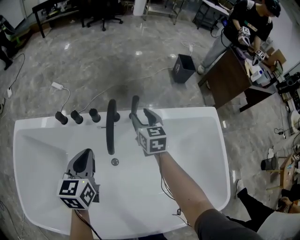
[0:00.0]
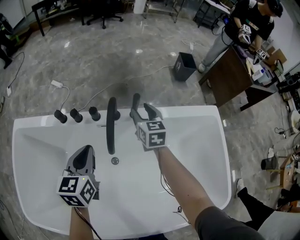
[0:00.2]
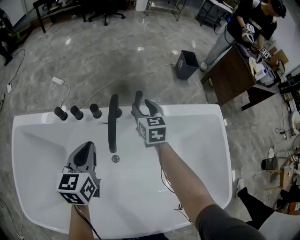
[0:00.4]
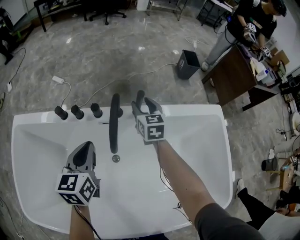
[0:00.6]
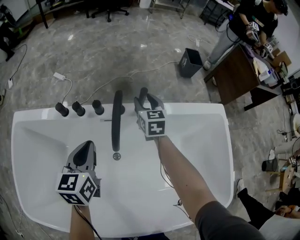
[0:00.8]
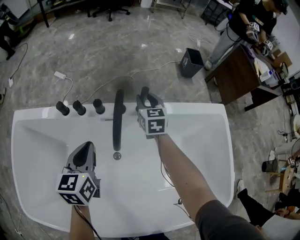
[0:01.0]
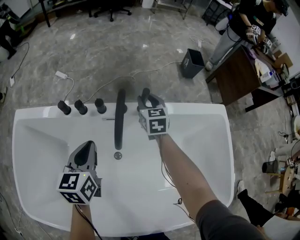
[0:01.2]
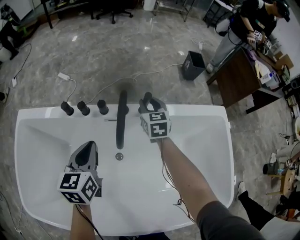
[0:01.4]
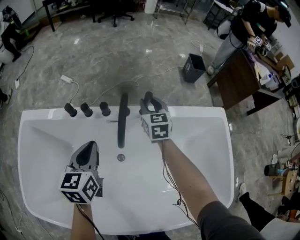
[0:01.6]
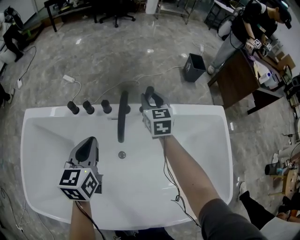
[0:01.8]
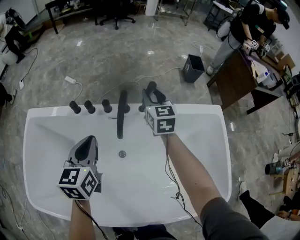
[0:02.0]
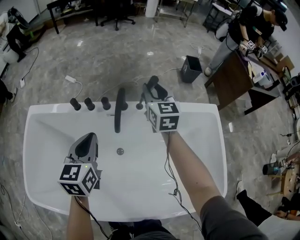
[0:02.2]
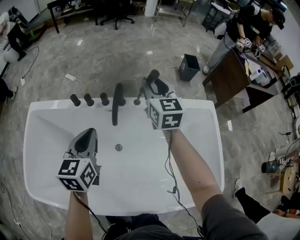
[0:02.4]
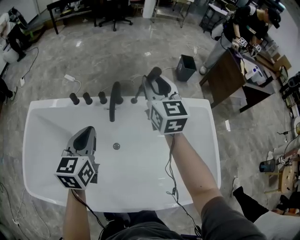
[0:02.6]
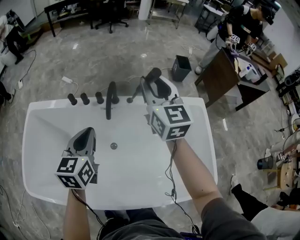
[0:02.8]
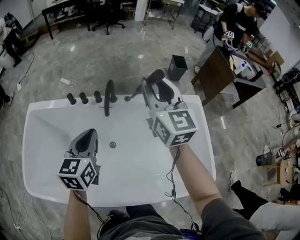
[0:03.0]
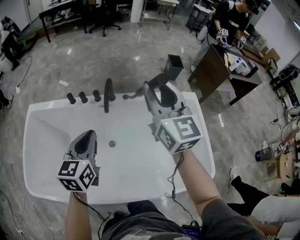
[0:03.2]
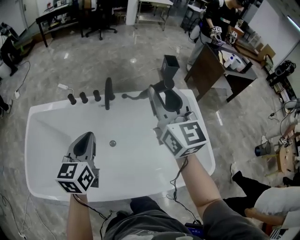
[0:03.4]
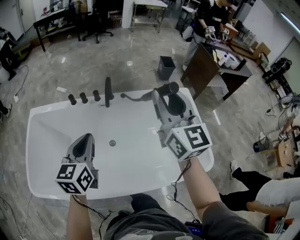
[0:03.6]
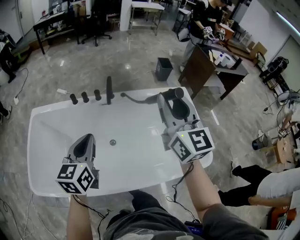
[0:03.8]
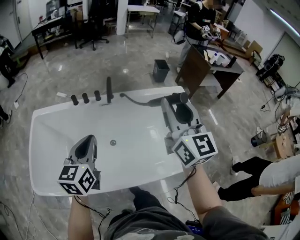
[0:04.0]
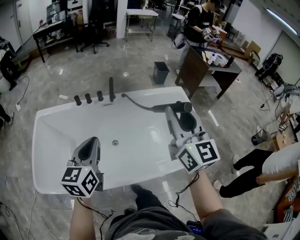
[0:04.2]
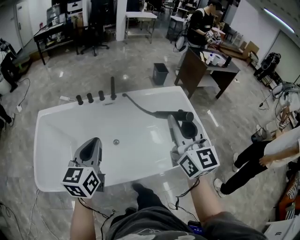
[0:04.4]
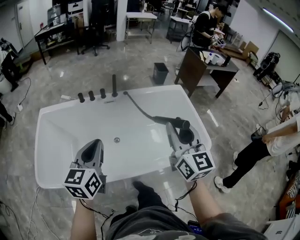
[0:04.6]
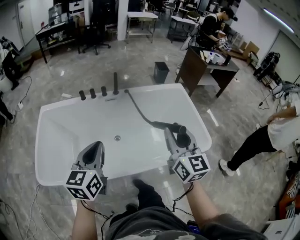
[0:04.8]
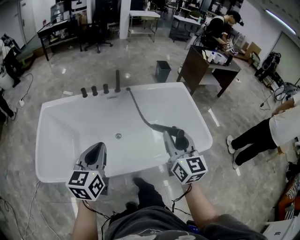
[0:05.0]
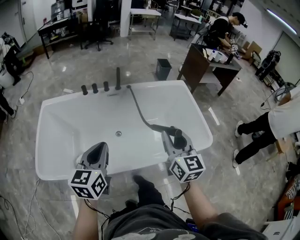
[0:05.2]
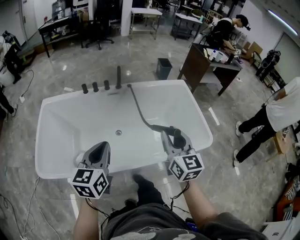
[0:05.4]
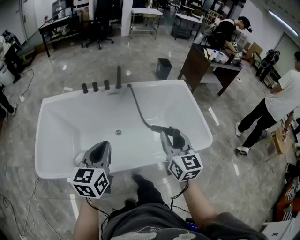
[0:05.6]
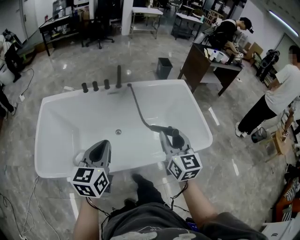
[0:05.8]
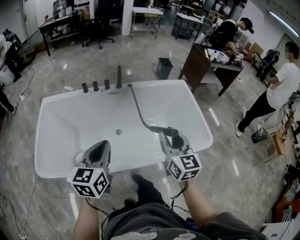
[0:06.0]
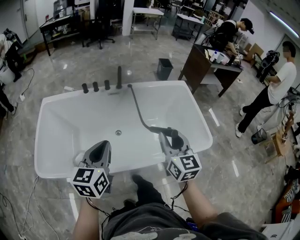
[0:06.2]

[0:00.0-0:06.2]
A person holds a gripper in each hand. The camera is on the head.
0:01.6 to 0:03.2: The left gripper moves backward and upward, about 25 cm, while the right gripper heads upward and backward, covering about 40 cm, and changes its angle by roughly 30 degrees.
0:03.2 to 0:04.6: The two grippers go about 30 cm backward.
0:04.6 to 0:06.2: The right gripper heads downward, covering roughly 10 cm.

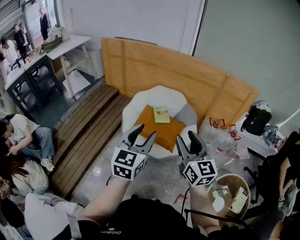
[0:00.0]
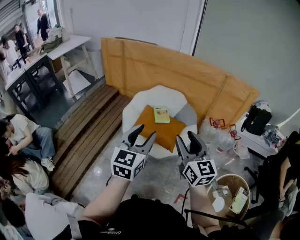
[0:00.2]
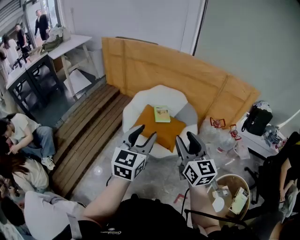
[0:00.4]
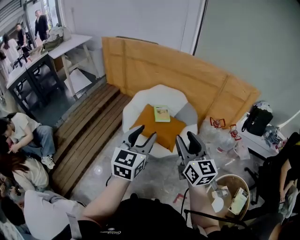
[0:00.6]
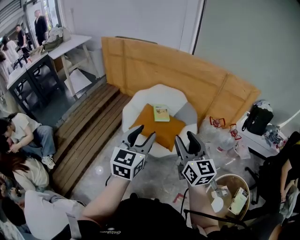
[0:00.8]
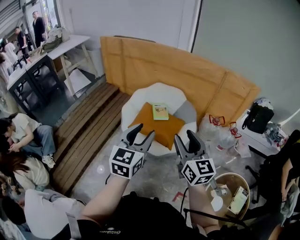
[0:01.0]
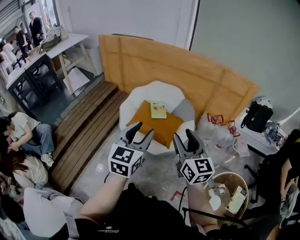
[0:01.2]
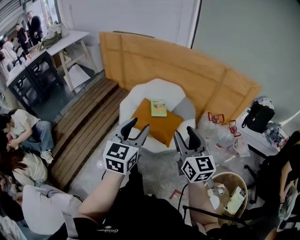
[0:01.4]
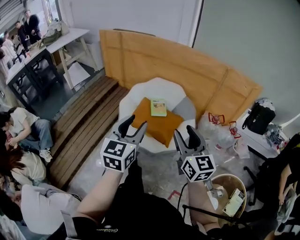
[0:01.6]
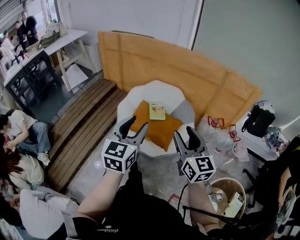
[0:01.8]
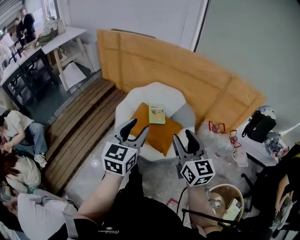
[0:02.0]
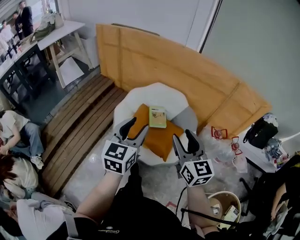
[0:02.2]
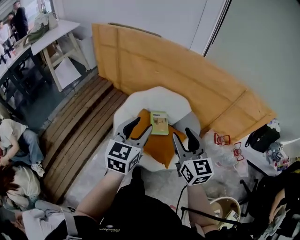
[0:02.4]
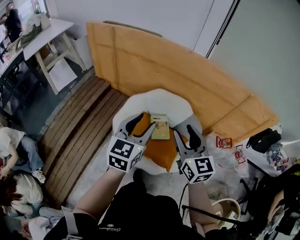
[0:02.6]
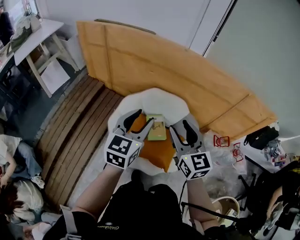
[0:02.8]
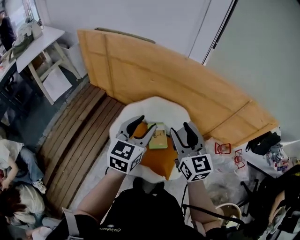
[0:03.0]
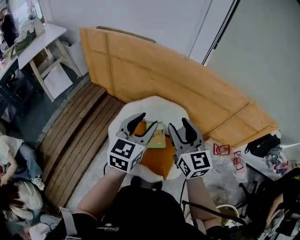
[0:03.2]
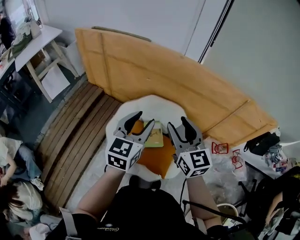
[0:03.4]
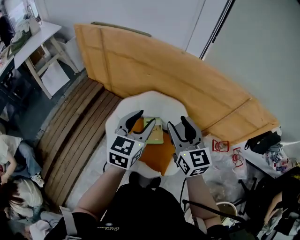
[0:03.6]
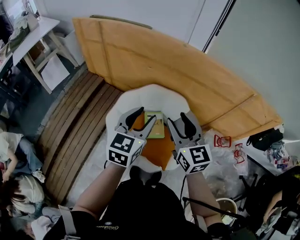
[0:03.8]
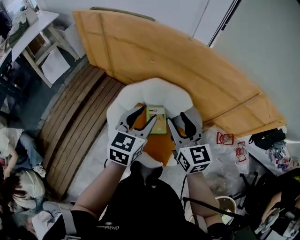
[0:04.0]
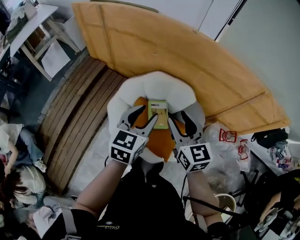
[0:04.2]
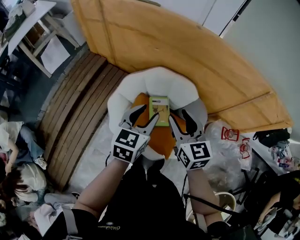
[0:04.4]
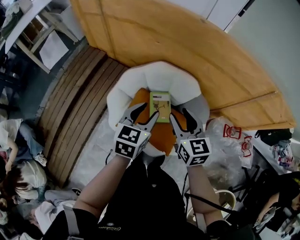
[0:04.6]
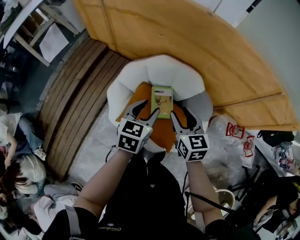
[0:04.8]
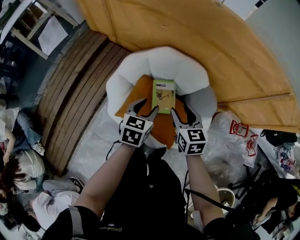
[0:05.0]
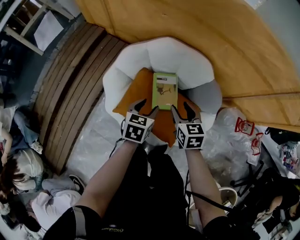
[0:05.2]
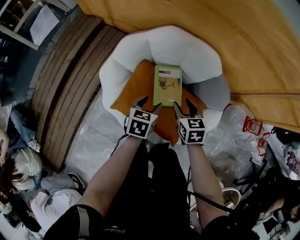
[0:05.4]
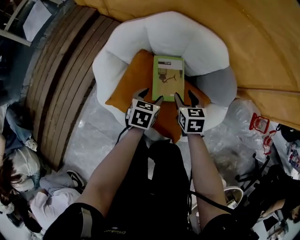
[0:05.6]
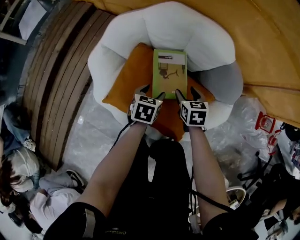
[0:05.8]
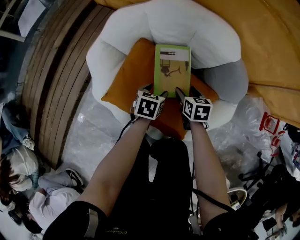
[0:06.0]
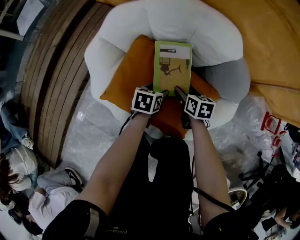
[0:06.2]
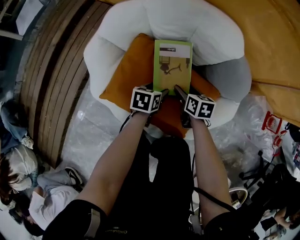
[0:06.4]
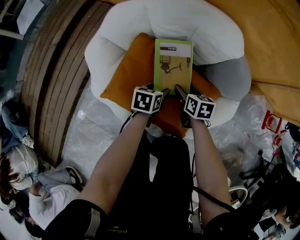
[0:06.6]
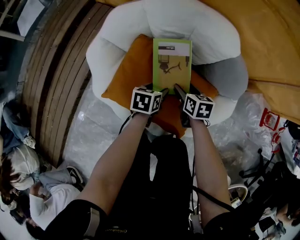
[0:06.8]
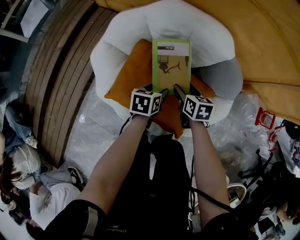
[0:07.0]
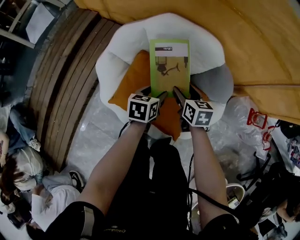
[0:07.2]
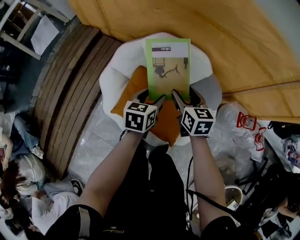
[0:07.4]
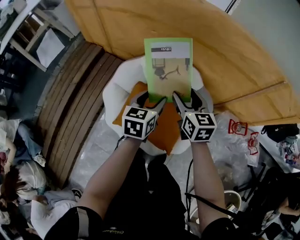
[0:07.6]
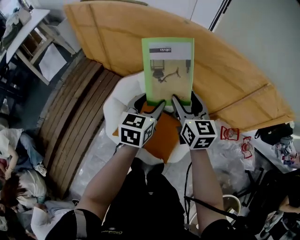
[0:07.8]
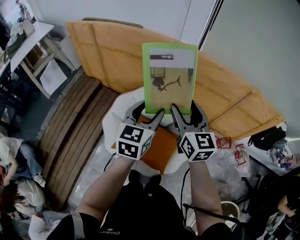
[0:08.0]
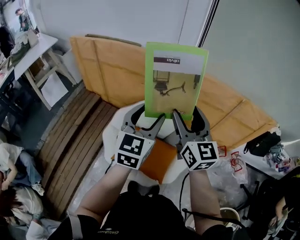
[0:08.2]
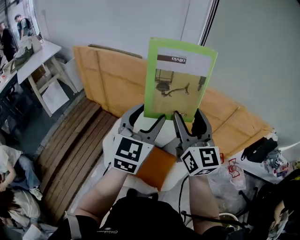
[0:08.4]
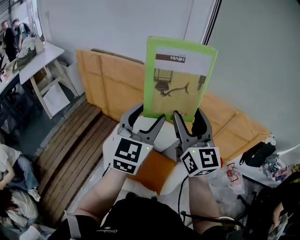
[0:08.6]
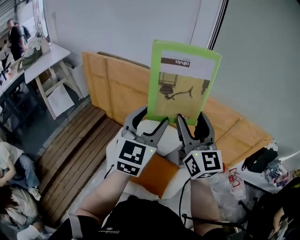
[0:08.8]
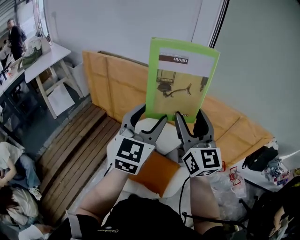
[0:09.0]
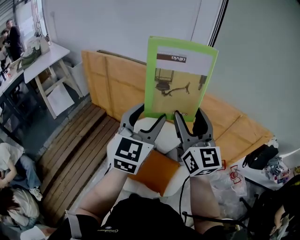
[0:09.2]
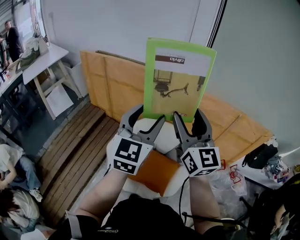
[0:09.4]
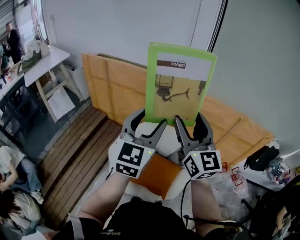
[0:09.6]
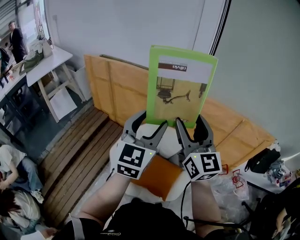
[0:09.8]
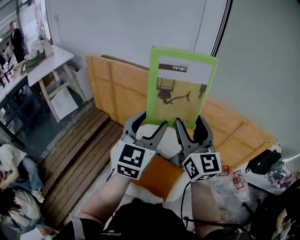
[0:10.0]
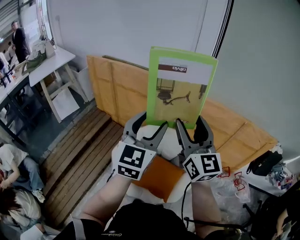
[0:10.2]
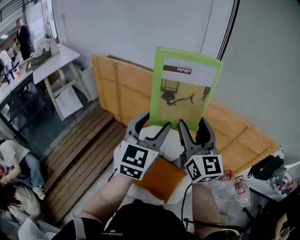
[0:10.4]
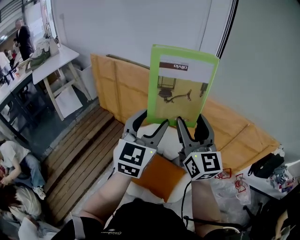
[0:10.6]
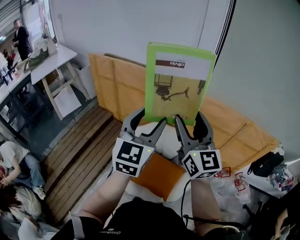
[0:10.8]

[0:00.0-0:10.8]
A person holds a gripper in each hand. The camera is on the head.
0:00.0 to 0:01.6: The left gripper moves roughly 5 cm; the right gripper heads to the right, covering some 5 cm.
0:01.6 to 0:03.0: The two grippers travel together, forward, about 40 cm.
0:03.0 to 0:04.6: The right gripper is displaced downward and forward by roughly 15 cm. The left gripper shifts roughly 15 cm downward.
0:04.6 to 0:06.2: Both grippers move downward, roughly 50 cm. The left gripper changes its angle by about 40 degrees; the right gripper turns by roughly 40 degrees.
0:06.2 to 0:07.8: Both grippers move upward, roughly 60 cm. The right gripper points its fingers about 40 degrees further upward; the left gripper angles its fingers upward, by roughly 30 degrees.
0:07.8 to 0:09.2: The two grippers go roughly 30 cm upward. The right gripper turns by some 30 degrees. The left gripper changes its angle by roughly 30 degrees.
0:09.2 to 0:10.8: The two grippers keep their place.

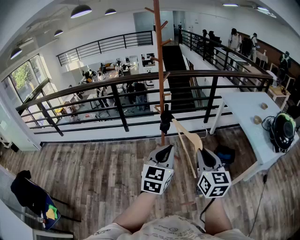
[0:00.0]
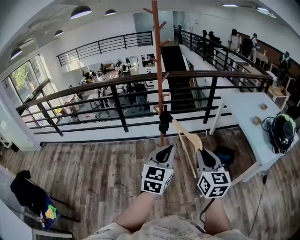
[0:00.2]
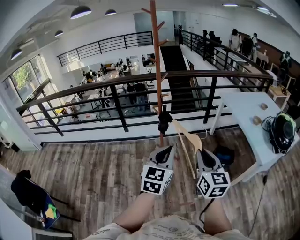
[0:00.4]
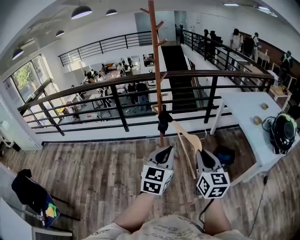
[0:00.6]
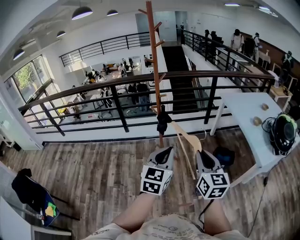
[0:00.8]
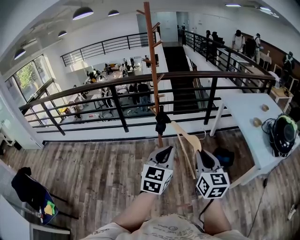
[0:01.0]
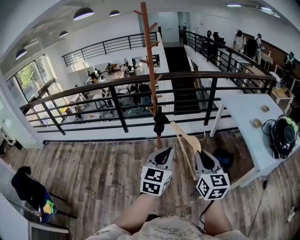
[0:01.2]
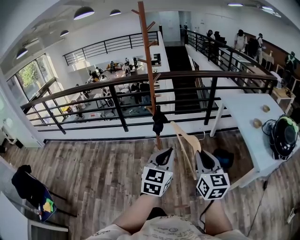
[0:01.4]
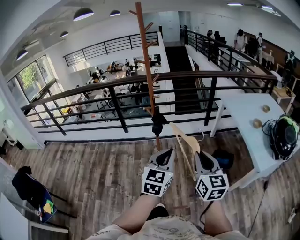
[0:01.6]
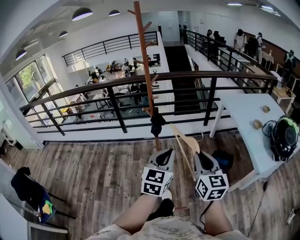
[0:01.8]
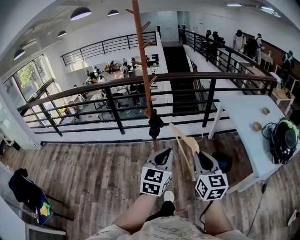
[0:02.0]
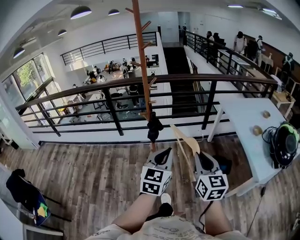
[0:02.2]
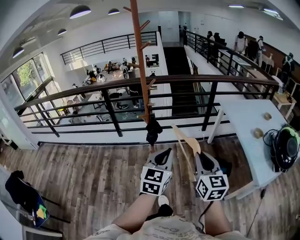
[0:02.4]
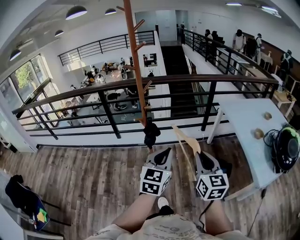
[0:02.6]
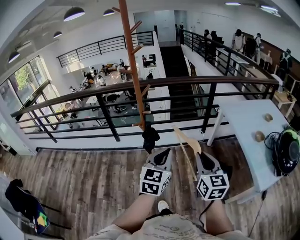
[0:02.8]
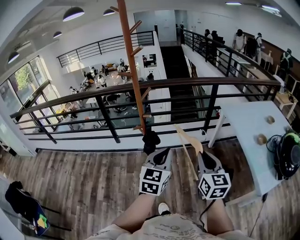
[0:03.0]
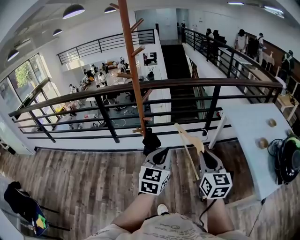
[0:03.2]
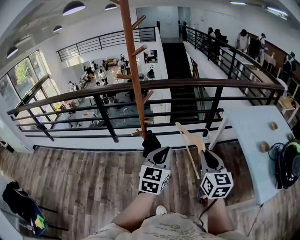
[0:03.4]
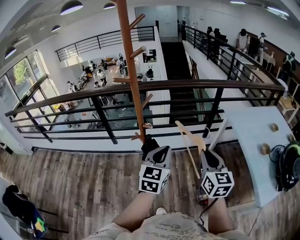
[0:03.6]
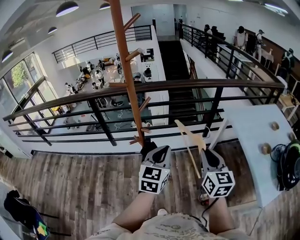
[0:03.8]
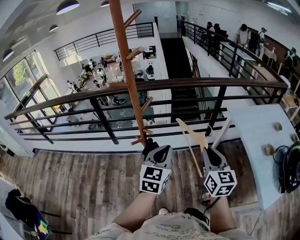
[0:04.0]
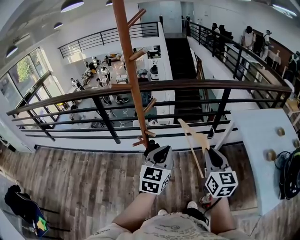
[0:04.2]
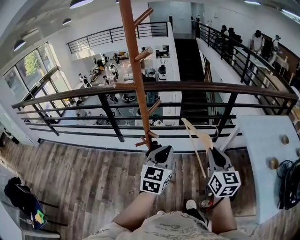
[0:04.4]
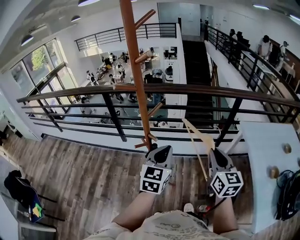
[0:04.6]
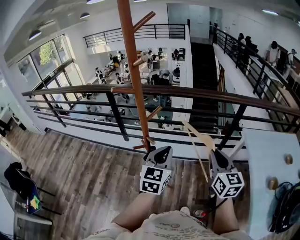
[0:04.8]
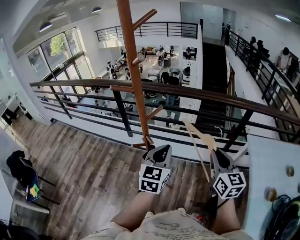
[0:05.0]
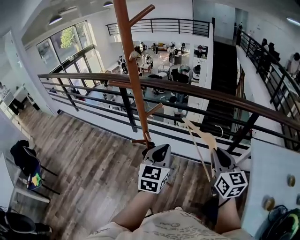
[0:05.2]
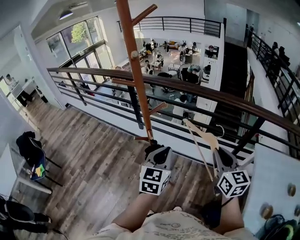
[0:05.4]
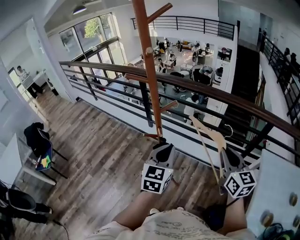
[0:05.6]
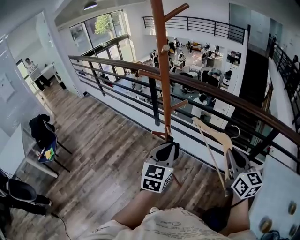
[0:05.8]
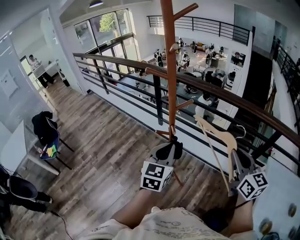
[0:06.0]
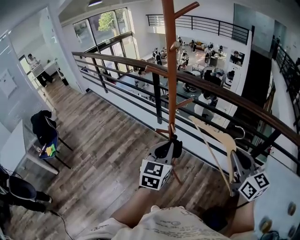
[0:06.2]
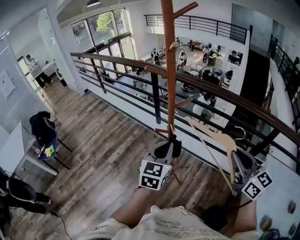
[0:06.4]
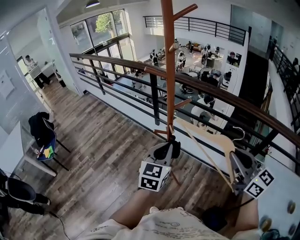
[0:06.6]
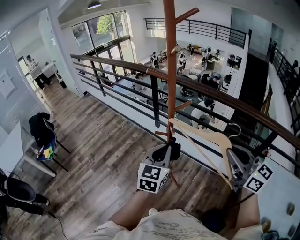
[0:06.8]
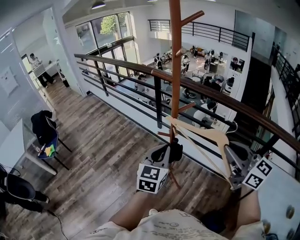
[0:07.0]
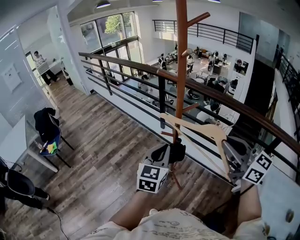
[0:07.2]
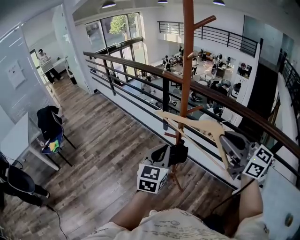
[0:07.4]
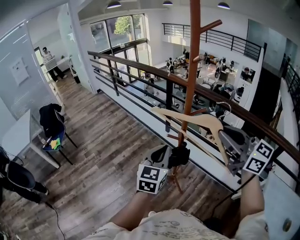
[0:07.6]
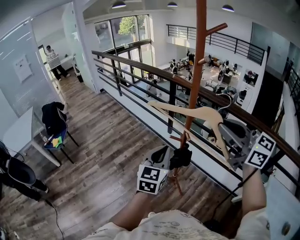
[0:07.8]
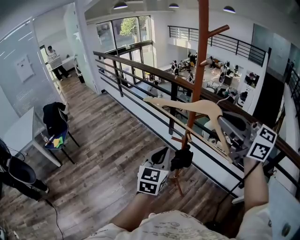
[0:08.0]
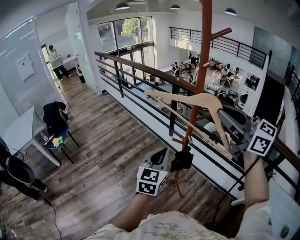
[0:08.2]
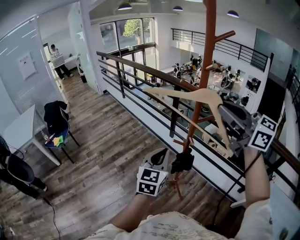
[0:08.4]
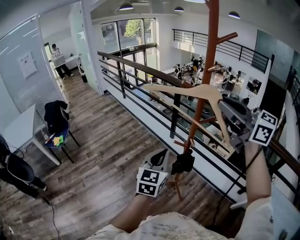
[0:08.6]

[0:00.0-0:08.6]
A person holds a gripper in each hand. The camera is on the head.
0:00.0 to 0:01.4: Both grippers move to the right, about 10 cm.
0:01.4 to 0:02.8: Both grippers travel together forward, roughly 20 cm.
0:02.8 to 0:04.4: The two grippers go some 25 cm forward.
0:04.4 to 0:05.8: The right gripper changes place by some 15 cm, and turns by approximately 40 degrees. The left gripper swivels about 30 degrees.
0:05.8 to 0:07.2: The left gripper heads to the left, covering some 5 cm. Meanwhile the right gripper travels to the left and upward by approximately 15 cm, and changes its angle by approximately 40 degrees.
0:07.2 to 0:08.6: The left gripper heads to the left, covering some 5 cm. Meanwhile the right gripper is displaced upward, forward and to the left by approximately 20 cm.
